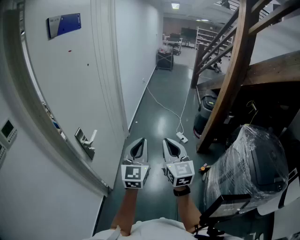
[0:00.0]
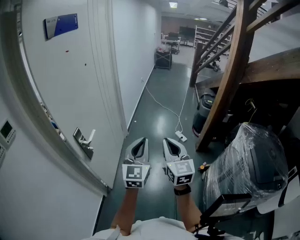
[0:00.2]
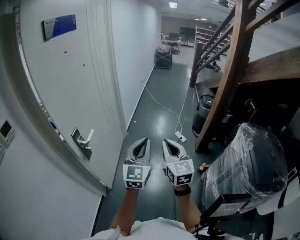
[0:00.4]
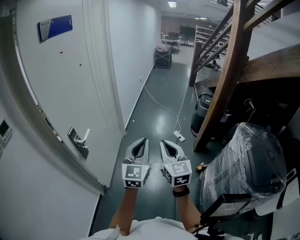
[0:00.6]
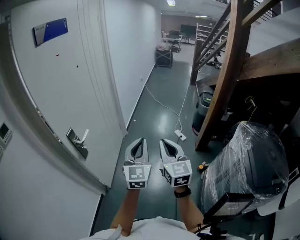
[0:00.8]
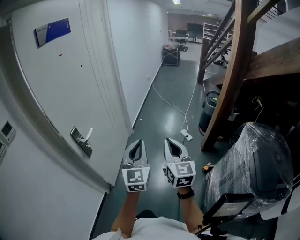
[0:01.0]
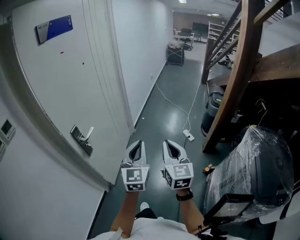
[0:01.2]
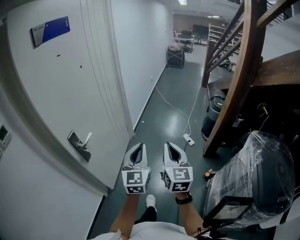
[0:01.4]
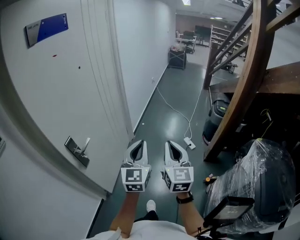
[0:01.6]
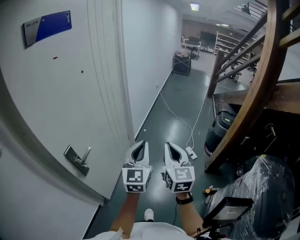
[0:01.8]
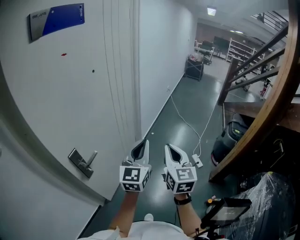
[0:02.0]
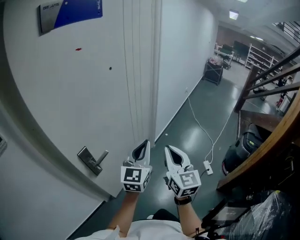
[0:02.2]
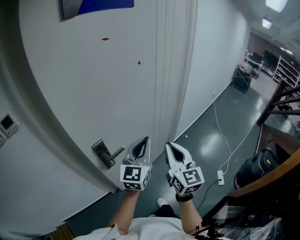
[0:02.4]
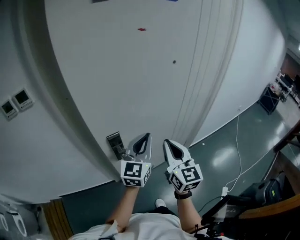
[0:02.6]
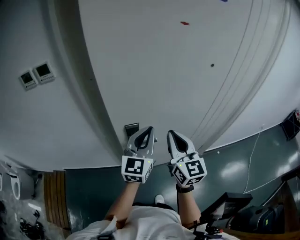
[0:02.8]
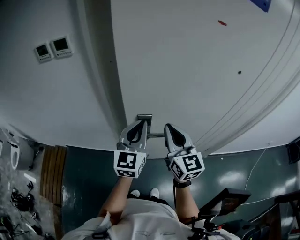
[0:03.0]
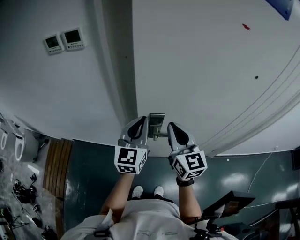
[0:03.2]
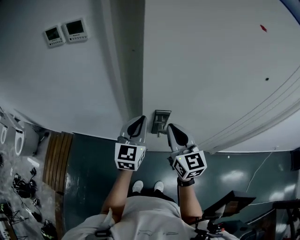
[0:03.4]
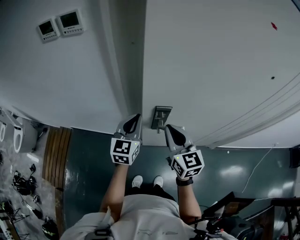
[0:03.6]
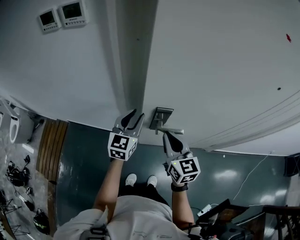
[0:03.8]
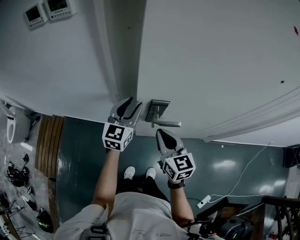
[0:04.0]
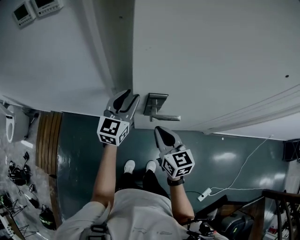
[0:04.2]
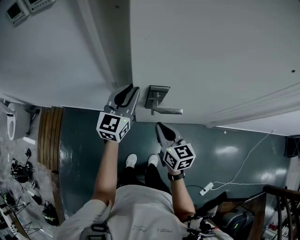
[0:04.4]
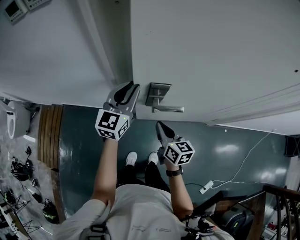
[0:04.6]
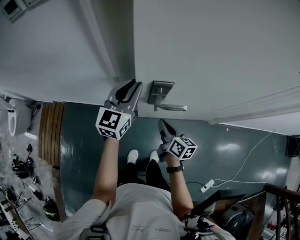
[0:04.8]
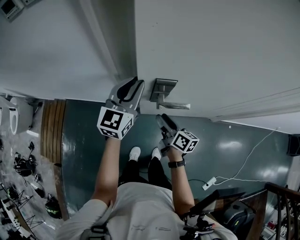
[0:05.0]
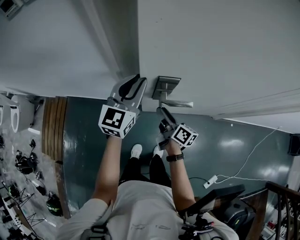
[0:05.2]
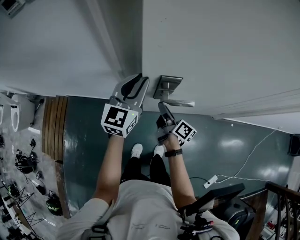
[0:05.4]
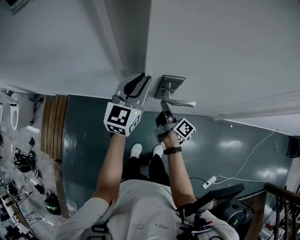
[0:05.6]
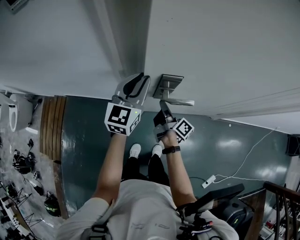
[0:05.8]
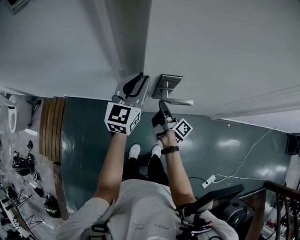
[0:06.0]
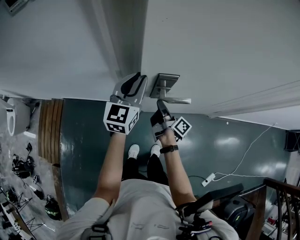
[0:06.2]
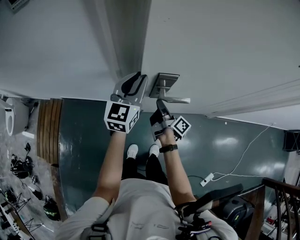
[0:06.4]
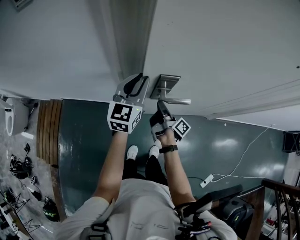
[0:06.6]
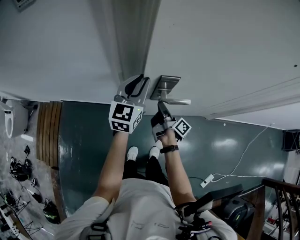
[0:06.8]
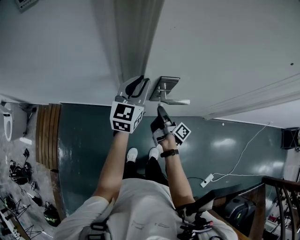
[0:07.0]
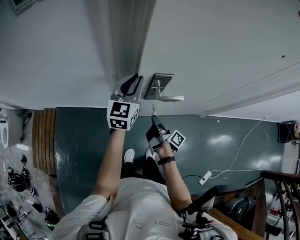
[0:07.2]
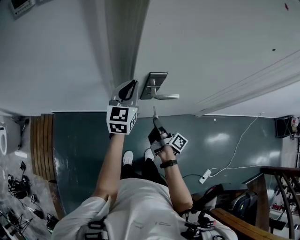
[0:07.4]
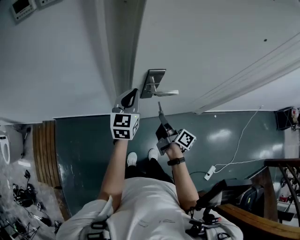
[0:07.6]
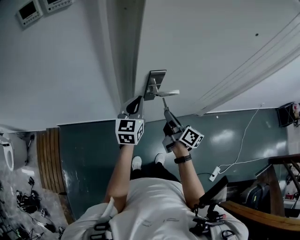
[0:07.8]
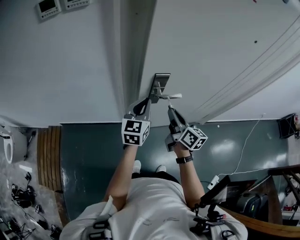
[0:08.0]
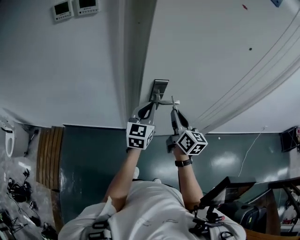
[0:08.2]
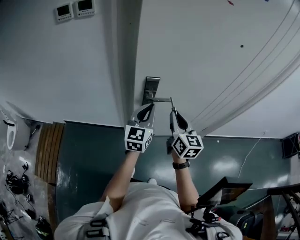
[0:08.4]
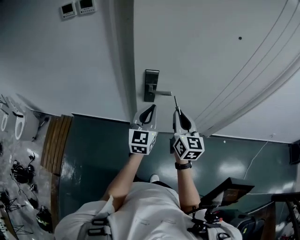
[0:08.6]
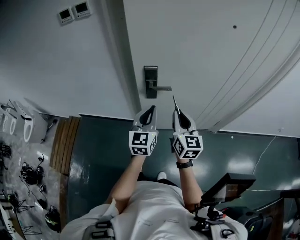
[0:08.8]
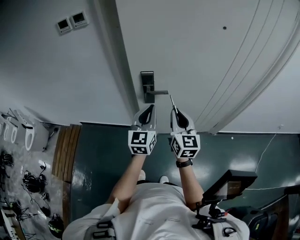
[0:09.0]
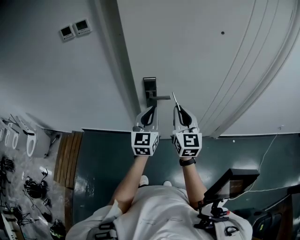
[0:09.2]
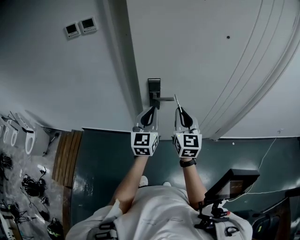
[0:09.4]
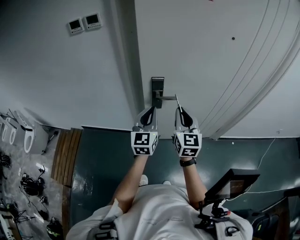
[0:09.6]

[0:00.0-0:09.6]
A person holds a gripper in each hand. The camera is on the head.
0:00.0 to 0:01.6: The grippers both shift forward and to the right by approximately 15 cm.
0:01.6 to 0:03.2: Both grippers are carried about 50 cm. The right gripper turns by some 90 degrees; the left gripper swivels some 70 degrees.
0:03.2 to 0:04.8: The left gripper goes about 15 cm downward and forward. The right gripper shifts some 30 cm downward, and twists roughly 40 degrees clockwise, seen from behind.
0:04.8 to 0:06.4: The right gripper moves forward, roughly 5 cm, rolls clockwise, seen from behind, by some 40 degrees, and opens, then closes once more.
0:06.4 to 0:08.0: The left gripper travels backward by roughly 10 cm, while the right gripper shifts approximately 20 cm upward and backward, and rolls counterclockwise, seen from behind, by approximately 50 degrees.
0:08.0 to 0:09.6: The left gripper goes about 15 cm backward and upward, while the right gripper shifts some 10 cm upward and backward, and changes its angle by some 40 degrees.

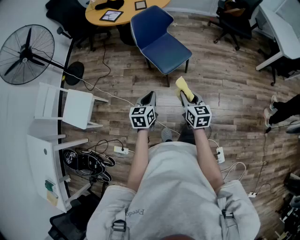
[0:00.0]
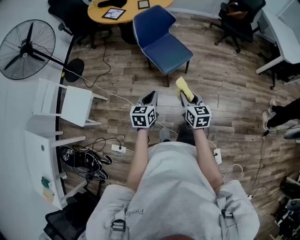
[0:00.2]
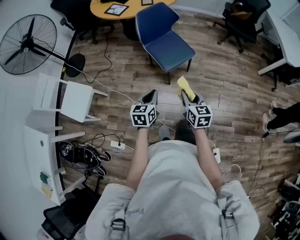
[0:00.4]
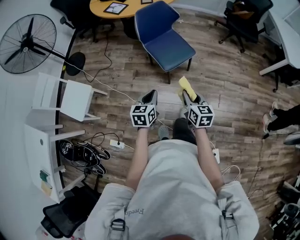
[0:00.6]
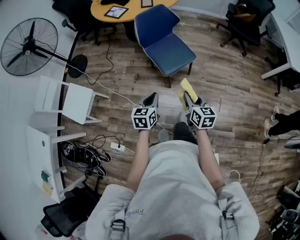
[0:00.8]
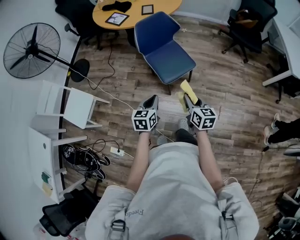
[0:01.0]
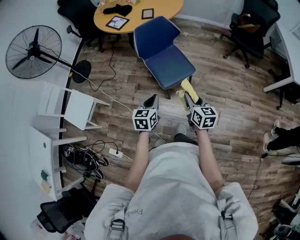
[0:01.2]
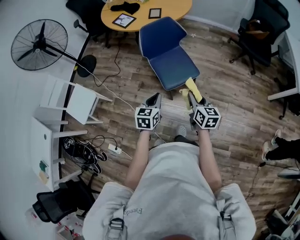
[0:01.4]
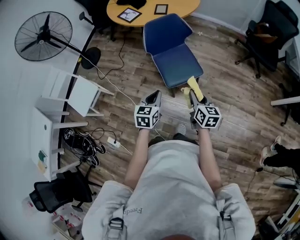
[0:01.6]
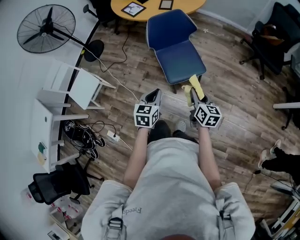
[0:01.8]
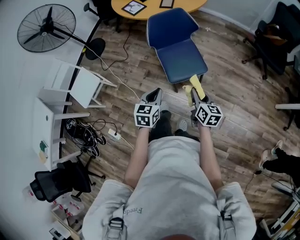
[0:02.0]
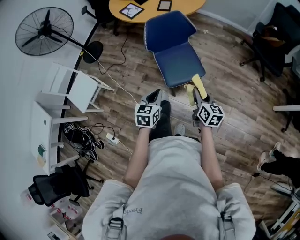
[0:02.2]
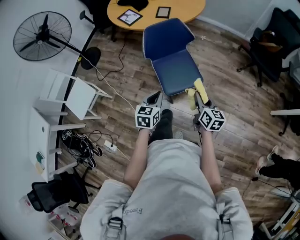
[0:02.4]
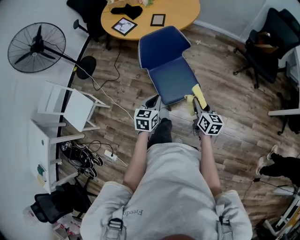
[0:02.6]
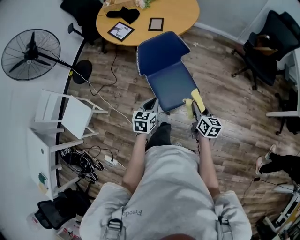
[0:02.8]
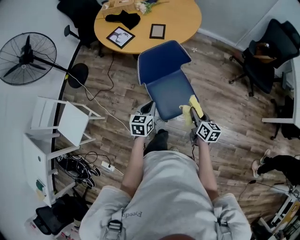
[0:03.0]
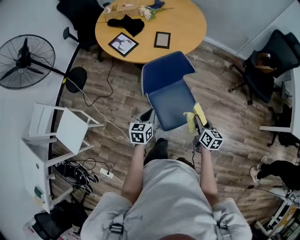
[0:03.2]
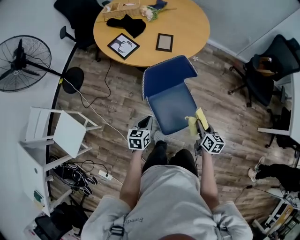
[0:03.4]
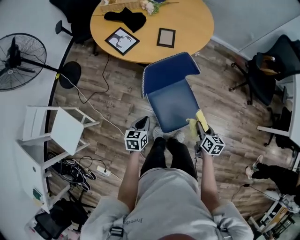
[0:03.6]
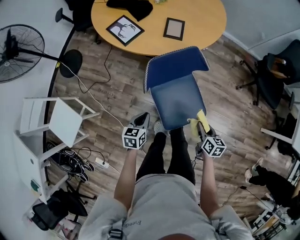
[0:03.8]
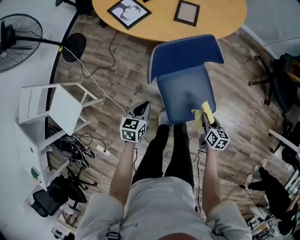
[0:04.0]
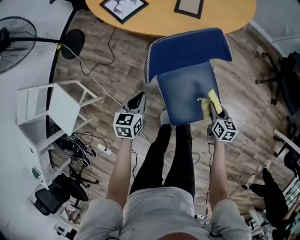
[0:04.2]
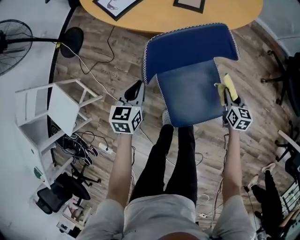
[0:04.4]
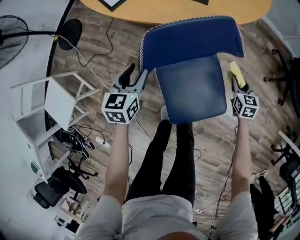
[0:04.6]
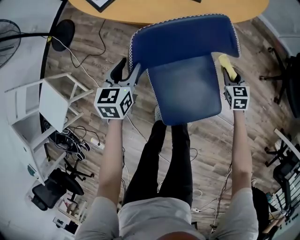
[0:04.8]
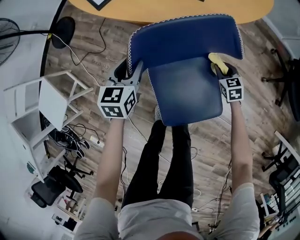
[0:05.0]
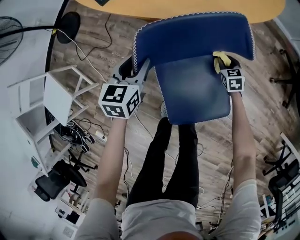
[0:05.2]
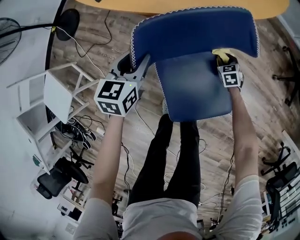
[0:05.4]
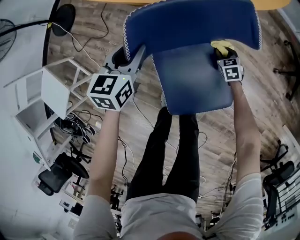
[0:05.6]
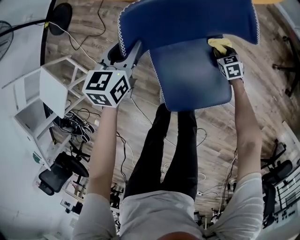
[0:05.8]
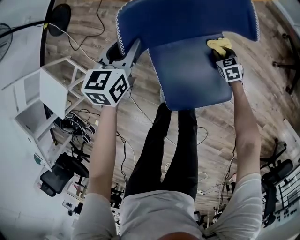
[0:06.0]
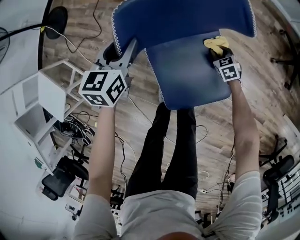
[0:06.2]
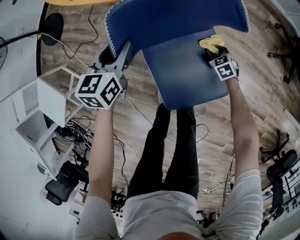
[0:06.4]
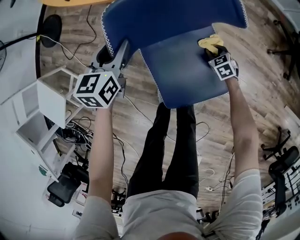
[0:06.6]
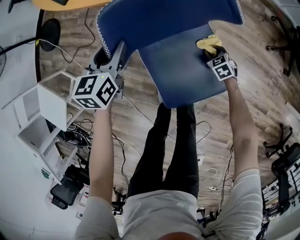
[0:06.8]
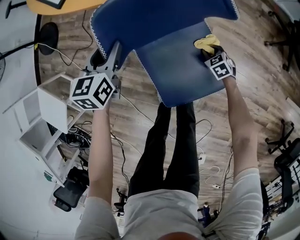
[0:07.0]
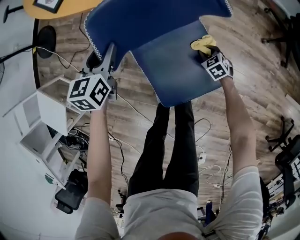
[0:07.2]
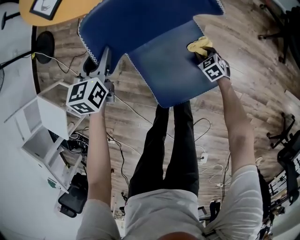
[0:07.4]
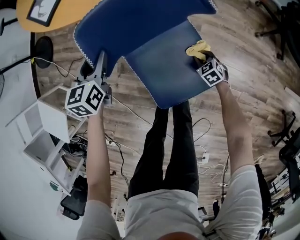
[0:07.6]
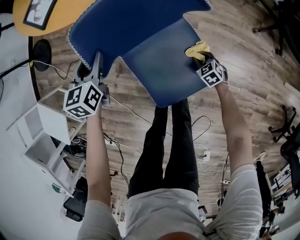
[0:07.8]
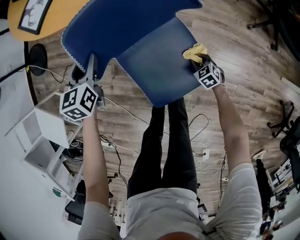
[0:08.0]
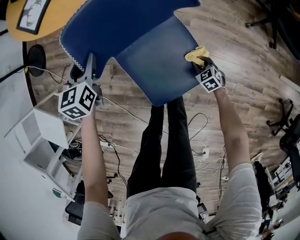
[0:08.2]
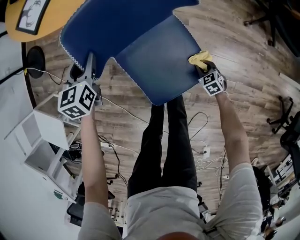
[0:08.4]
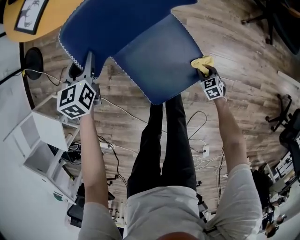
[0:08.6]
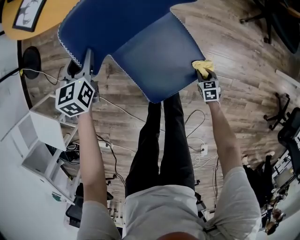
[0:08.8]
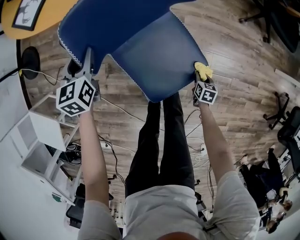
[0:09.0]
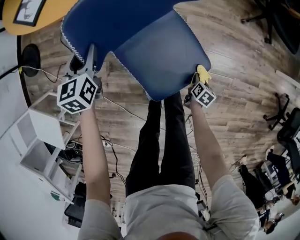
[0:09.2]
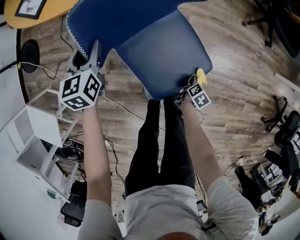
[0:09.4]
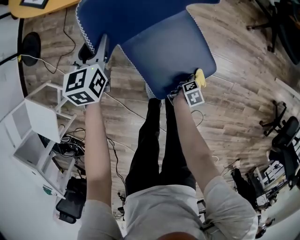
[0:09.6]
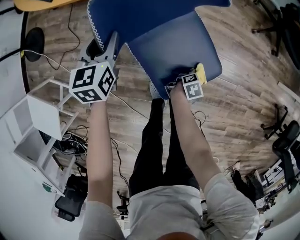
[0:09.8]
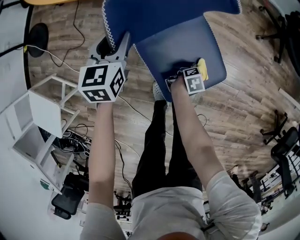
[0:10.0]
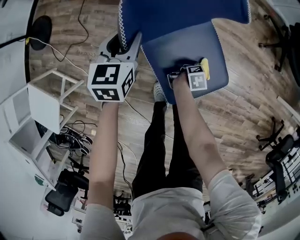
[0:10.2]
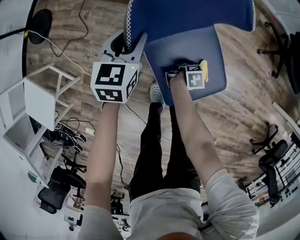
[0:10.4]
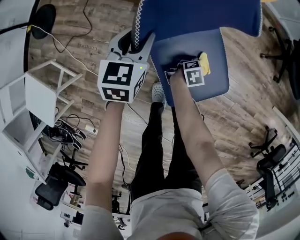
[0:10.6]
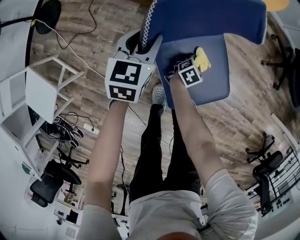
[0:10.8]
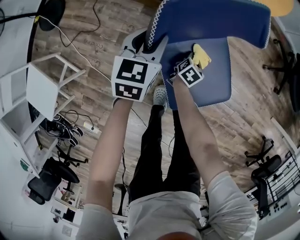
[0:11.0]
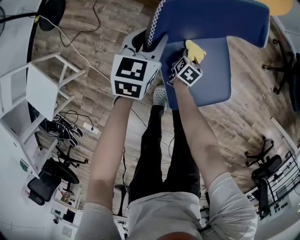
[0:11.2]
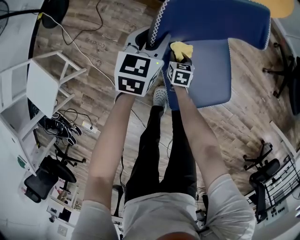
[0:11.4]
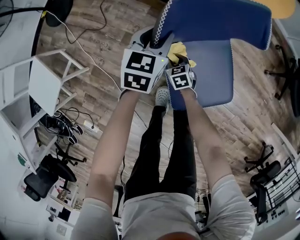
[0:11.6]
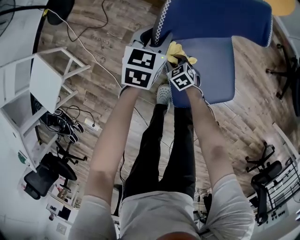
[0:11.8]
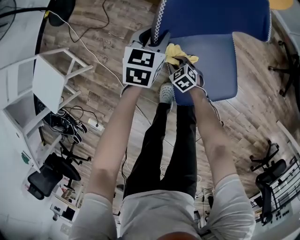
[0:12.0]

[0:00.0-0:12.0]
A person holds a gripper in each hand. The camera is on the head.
0:00.0 to 0:01.6: The grippers both shift forward and to the right by about 20 cm.
0:01.6 to 0:03.0: The two grippers go some 20 cm forward.
0:03.0 to 0:04.4: The right gripper travels downward and forward by roughly 35 cm, and rotates roughly 30 degrees. Meanwhile the left gripper shifts roughly 25 cm forward, downward and to the left.
0:04.4 to 0:06.0: The left gripper travels forward by approximately 10 cm, and opens. Meanwhile the right gripper travels downward by approximately 20 cm, and rotates about 40 degrees.
0:06.0 to 0:07.6: The right gripper travels backward by some 10 cm.
0:07.6 to 0:09.0: The right gripper shifts some 15 cm backward, and rolls clockwise, seen from behind, by approximately 60 degrees.
0:09.0 to 0:10.4: The right gripper moves approximately 15 cm, and rotates around the line of its fingers by some 50 degrees, clockwise from behind.
0:10.4 to 0:12.0: The right gripper moves some 25 cm, and rolls counterclockwise, seen from behind, by some 110 degrees.

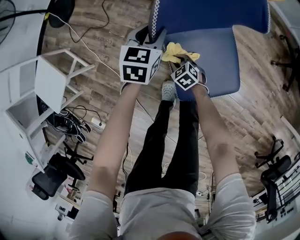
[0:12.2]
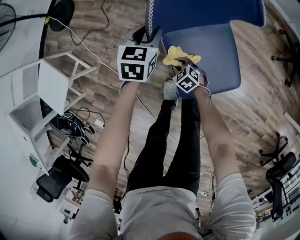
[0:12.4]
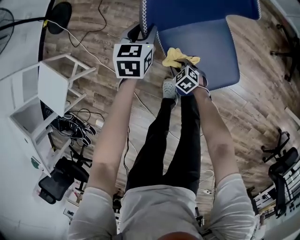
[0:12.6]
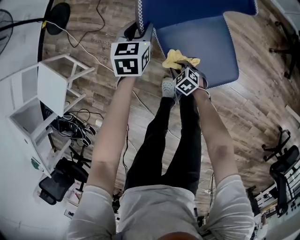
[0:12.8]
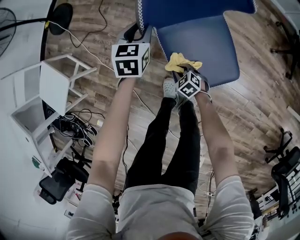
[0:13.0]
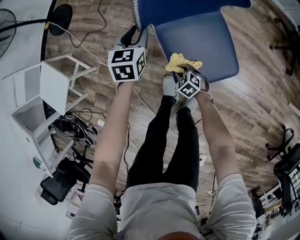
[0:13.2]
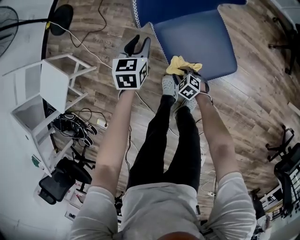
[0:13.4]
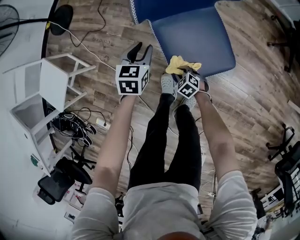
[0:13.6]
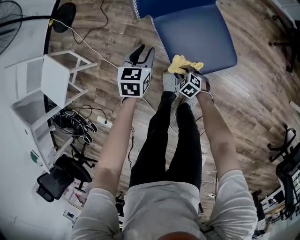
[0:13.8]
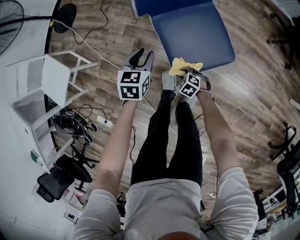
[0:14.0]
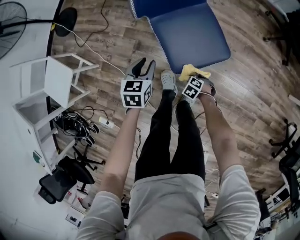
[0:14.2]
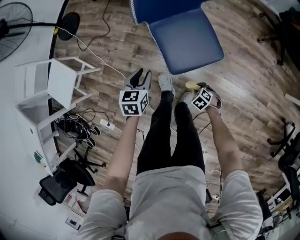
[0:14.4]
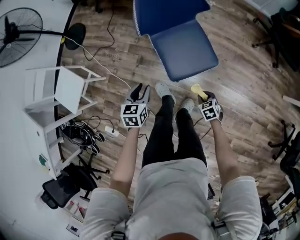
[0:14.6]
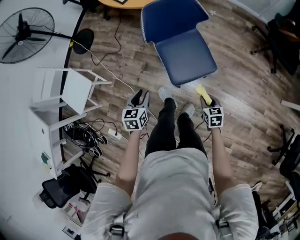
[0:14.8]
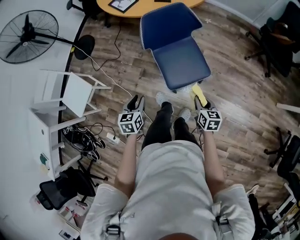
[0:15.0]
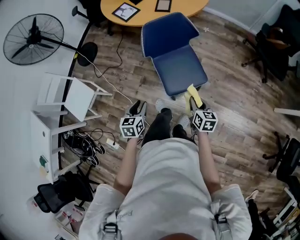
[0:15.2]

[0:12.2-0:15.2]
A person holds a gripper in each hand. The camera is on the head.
0:12.2 to 0:13.8: Both grippers travel together backward, about 20 cm.
0:13.8 to 0:15.2: The right gripper goes about 40 cm upward, and twists about 50 degrees clockwise, seen from behind. The left gripper moves upward, approximately 20 cm.
